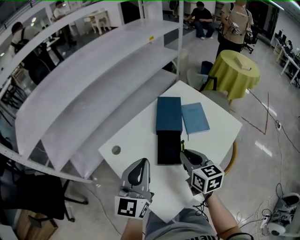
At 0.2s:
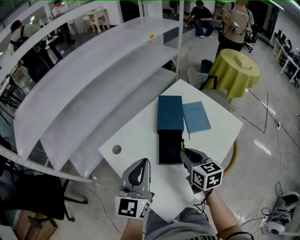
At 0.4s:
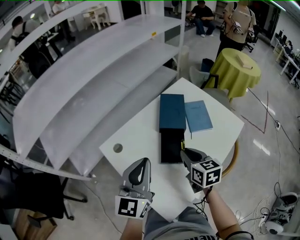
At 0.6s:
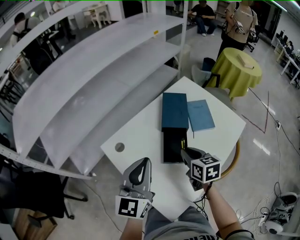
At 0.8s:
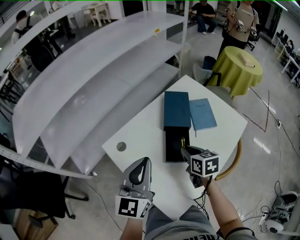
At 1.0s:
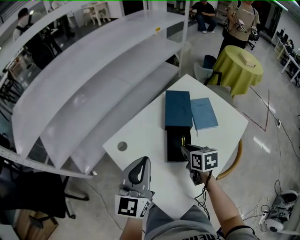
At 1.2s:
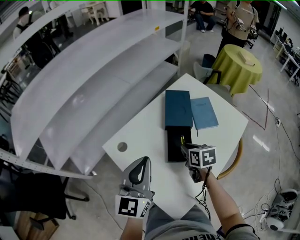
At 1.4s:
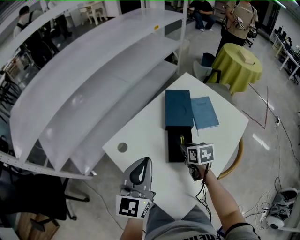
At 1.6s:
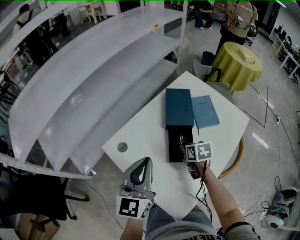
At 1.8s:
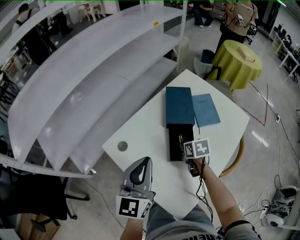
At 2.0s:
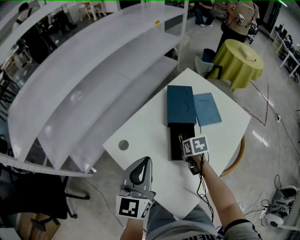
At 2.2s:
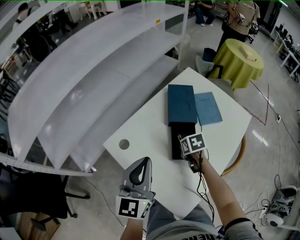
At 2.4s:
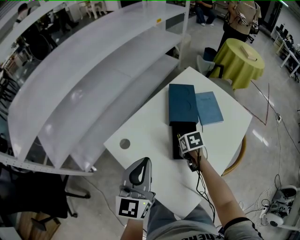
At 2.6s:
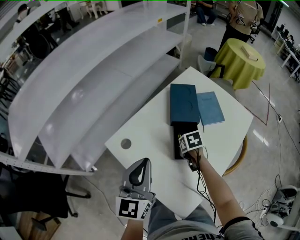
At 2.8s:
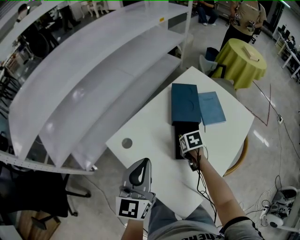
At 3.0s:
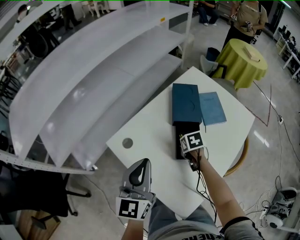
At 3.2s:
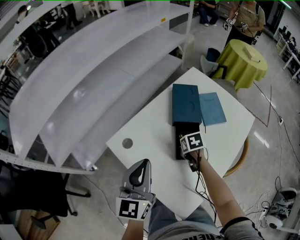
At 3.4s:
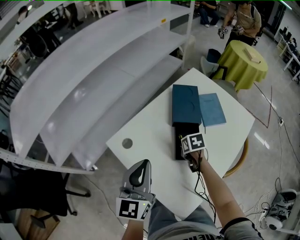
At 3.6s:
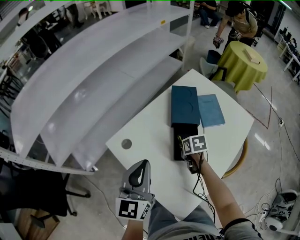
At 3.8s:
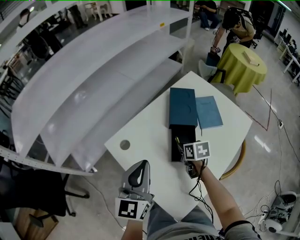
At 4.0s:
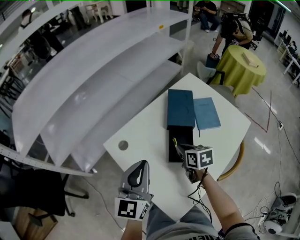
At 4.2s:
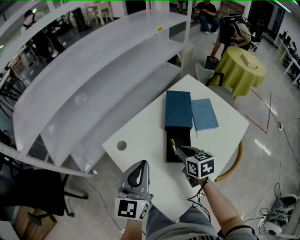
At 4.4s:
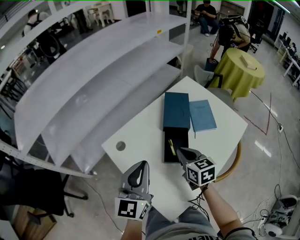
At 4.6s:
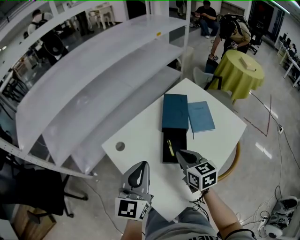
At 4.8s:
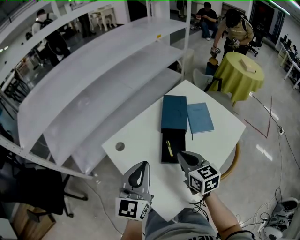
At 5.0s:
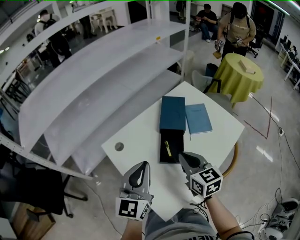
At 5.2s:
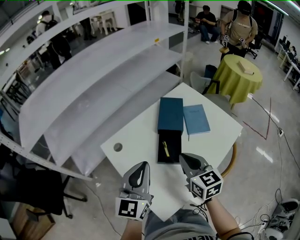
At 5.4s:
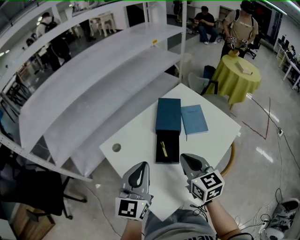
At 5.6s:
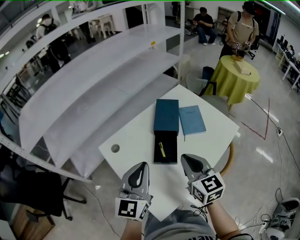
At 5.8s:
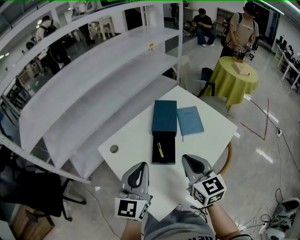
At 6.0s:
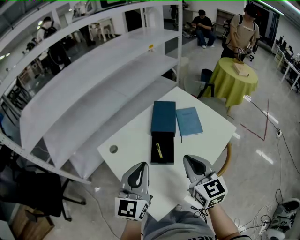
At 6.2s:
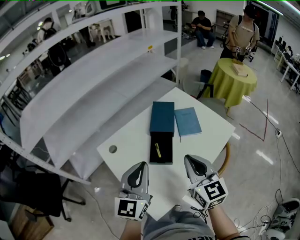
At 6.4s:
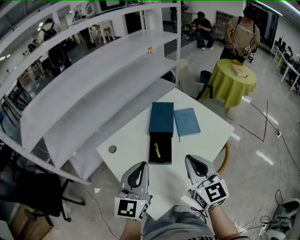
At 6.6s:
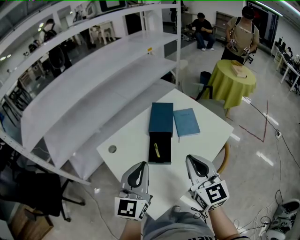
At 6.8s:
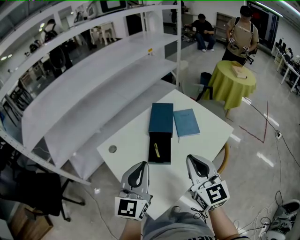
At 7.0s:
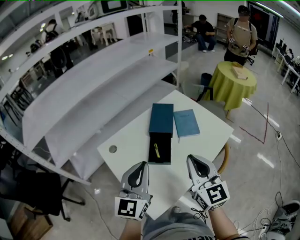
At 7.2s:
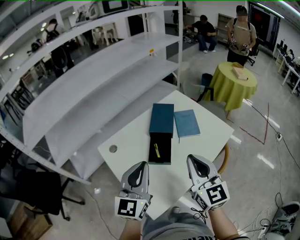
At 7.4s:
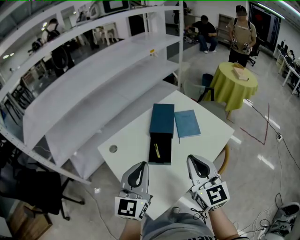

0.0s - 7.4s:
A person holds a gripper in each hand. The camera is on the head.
0.0s - 1.4s: The left gripper moves about 5 cm. The right gripper heads downward and forward, covering approximately 15 cm, and swivels approximately 30 degrees.
1.4s - 3.0s: The right gripper goes approximately 5 cm downward.
3.0s - 4.4s: The right gripper moves upward, roughly 15 cm, and tilts its fingers approximately 40 degrees upward. Meanwhile the left gripper changes place by about 5 cm.
4.4s - 6.0s: The right gripper is displaced upward, backward and to the right by some 15 cm, and turns by some 20 degrees. Meanwhile the left gripper shifts about 5 cm to the right.
6.0s - 7.4s: The right gripper moves some 5 cm.

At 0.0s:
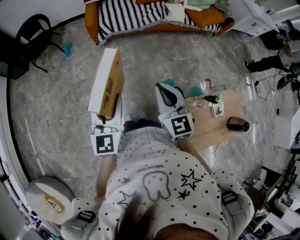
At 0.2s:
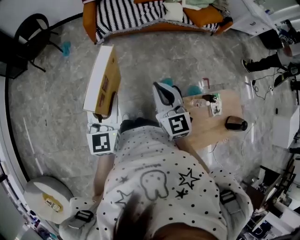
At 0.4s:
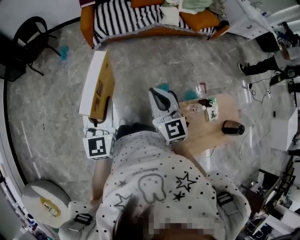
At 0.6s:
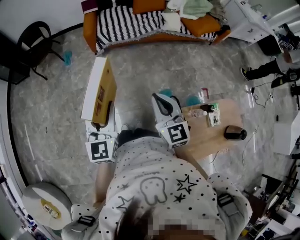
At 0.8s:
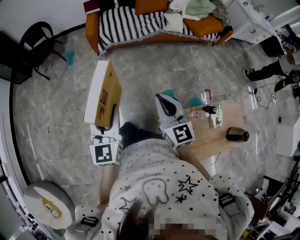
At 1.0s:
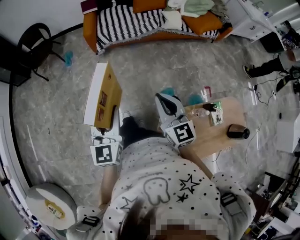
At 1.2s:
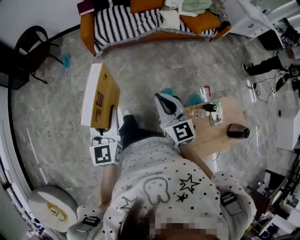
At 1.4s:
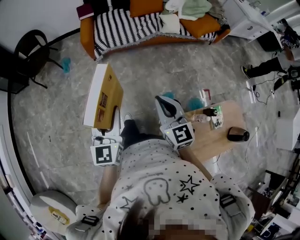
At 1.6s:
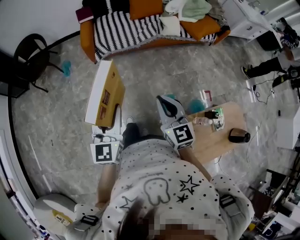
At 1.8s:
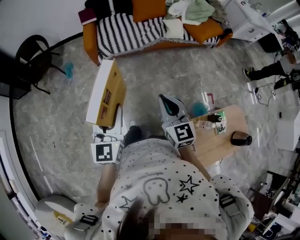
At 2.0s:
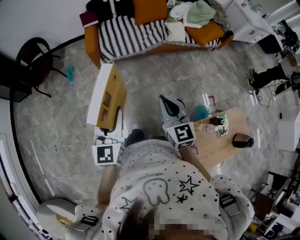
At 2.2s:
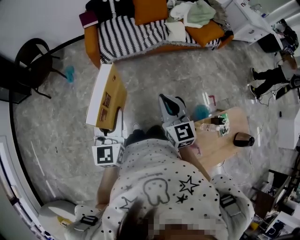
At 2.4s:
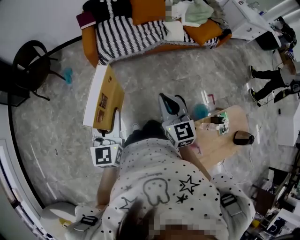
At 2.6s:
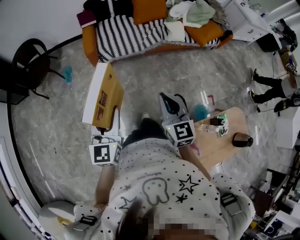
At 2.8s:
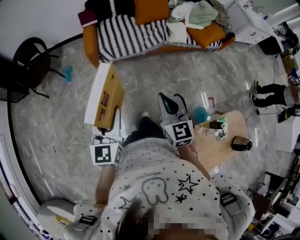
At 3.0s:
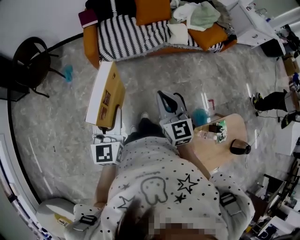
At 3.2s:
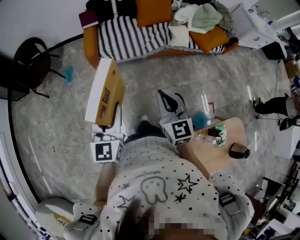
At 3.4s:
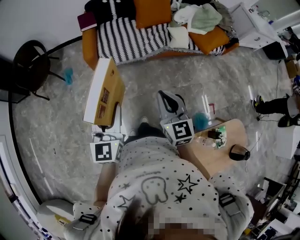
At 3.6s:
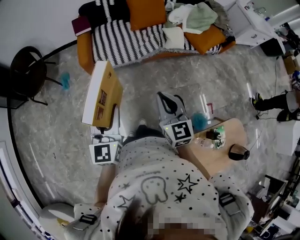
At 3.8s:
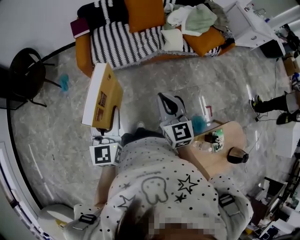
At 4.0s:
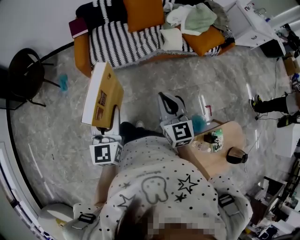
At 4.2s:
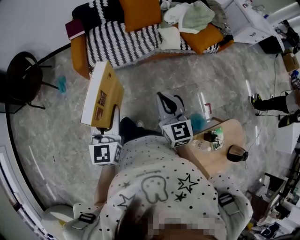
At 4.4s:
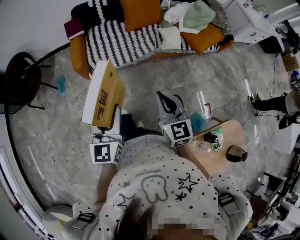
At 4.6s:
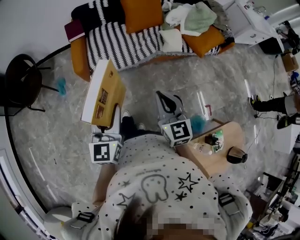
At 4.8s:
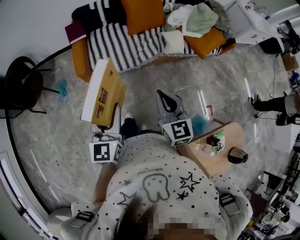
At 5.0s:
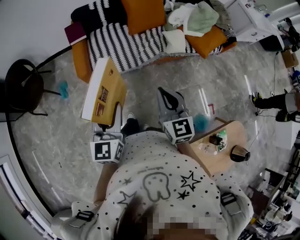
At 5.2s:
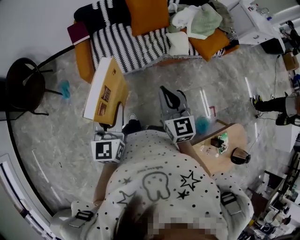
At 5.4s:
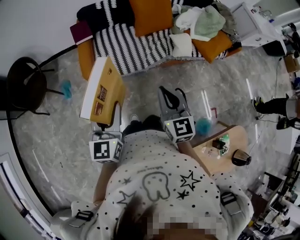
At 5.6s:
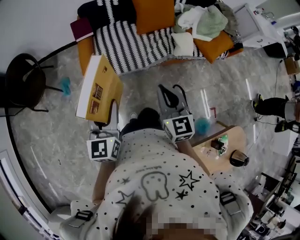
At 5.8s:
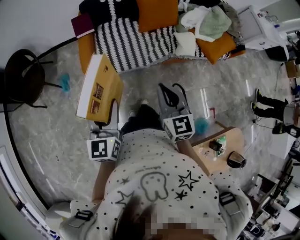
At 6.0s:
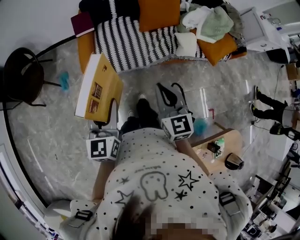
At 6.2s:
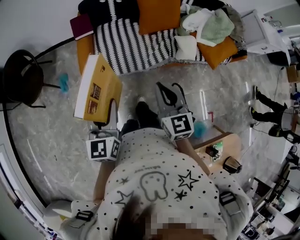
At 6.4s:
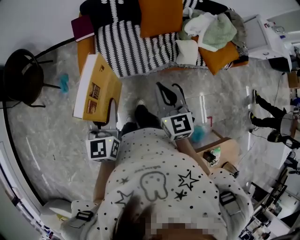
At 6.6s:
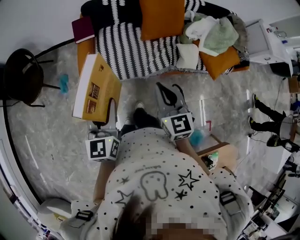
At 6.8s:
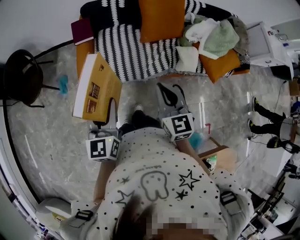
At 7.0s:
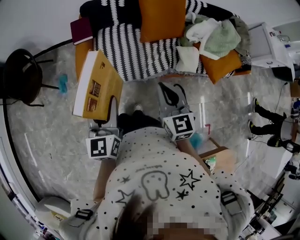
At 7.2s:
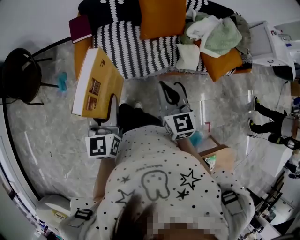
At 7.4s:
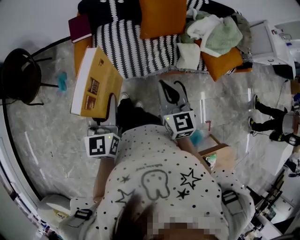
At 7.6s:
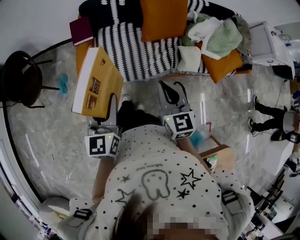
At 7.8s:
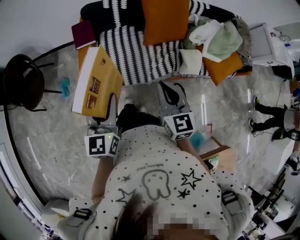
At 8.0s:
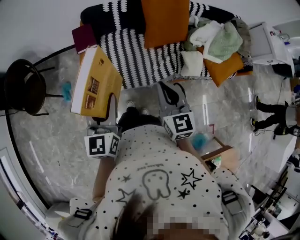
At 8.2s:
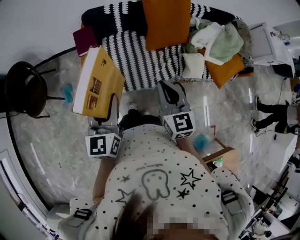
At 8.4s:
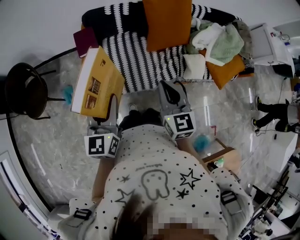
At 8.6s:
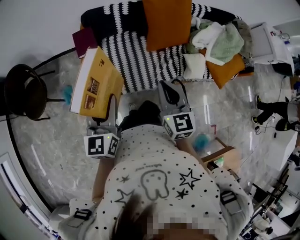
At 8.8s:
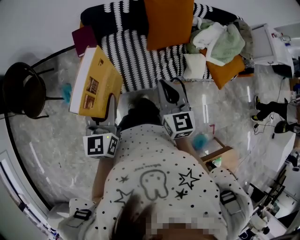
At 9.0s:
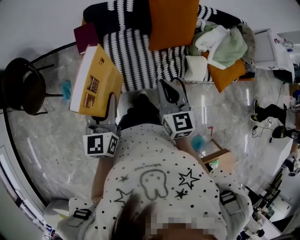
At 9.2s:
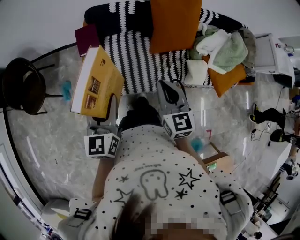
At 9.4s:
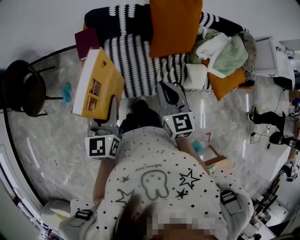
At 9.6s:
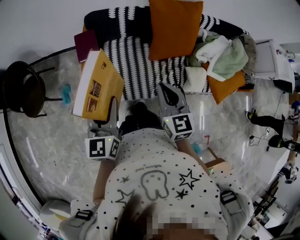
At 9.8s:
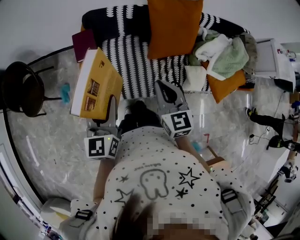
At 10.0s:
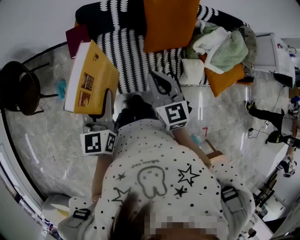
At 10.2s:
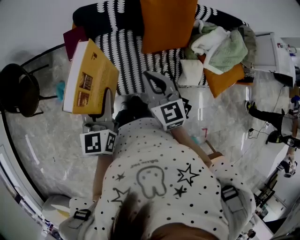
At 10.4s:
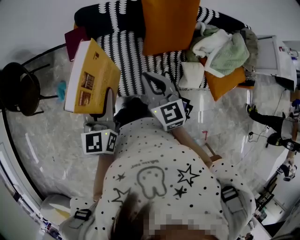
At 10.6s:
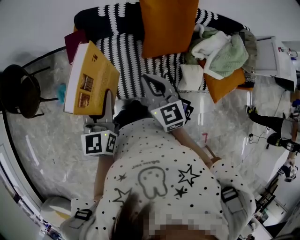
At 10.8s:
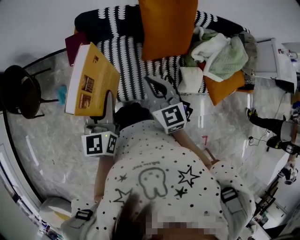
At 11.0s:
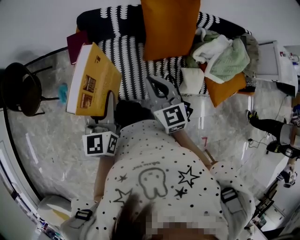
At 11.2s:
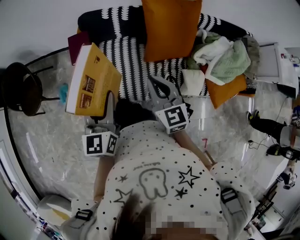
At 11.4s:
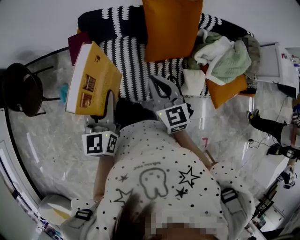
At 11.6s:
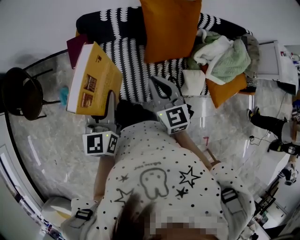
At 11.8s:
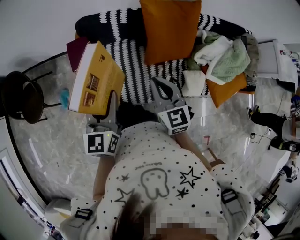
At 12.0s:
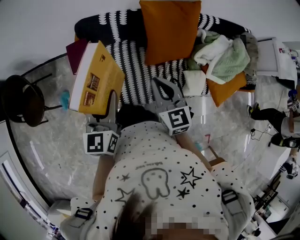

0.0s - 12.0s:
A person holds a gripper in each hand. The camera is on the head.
0.0s - 1.6s: The grippers both shift forward by approximately 10 cm.
1.6s - 3.0s: The two grippers go some 10 cm forward.
3.0s - 4.4s: The grippers both shift forward and to the right by approximately 10 cm.
4.4s - 6.0s: Both grippers move forward and to the left, some 20 cm.
6.0s - 7.6s: Both grippers travel together forward, approximately 15 cm.
7.6s - 9.0s: Both grippers move forward and to the left, approximately 10 cm.
9.0s - 10.4s: The right gripper heads forward, covering roughly 10 cm; the left gripper travels forward and to the right by approximately 10 cm.
10.4s - 12.0s: The grippers both shift forward by approximately 5 cm.

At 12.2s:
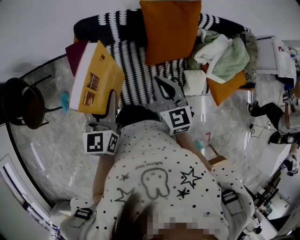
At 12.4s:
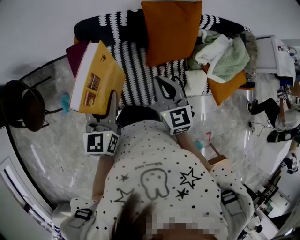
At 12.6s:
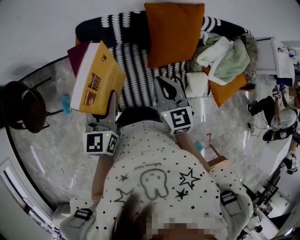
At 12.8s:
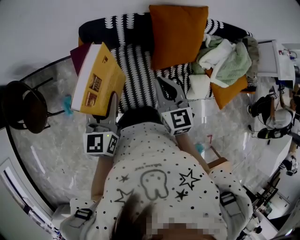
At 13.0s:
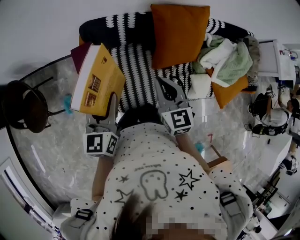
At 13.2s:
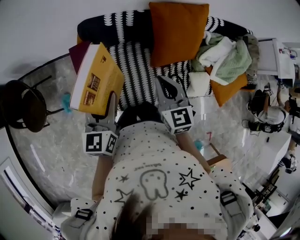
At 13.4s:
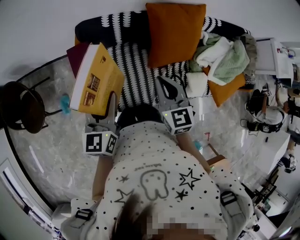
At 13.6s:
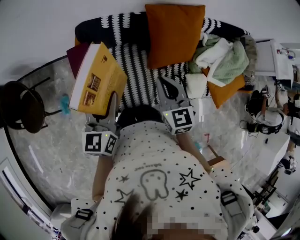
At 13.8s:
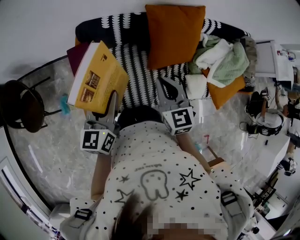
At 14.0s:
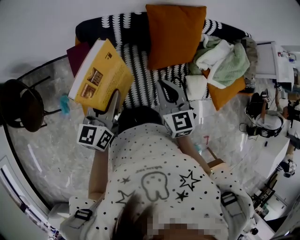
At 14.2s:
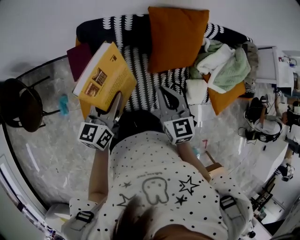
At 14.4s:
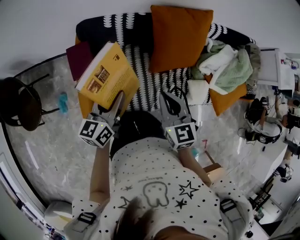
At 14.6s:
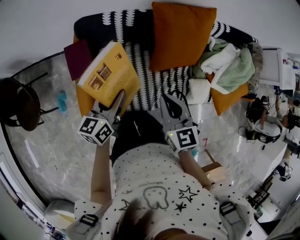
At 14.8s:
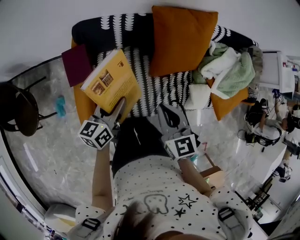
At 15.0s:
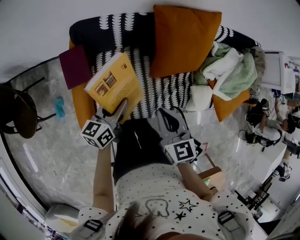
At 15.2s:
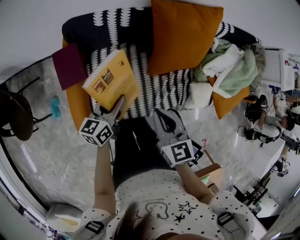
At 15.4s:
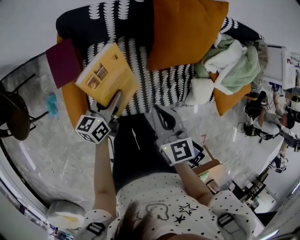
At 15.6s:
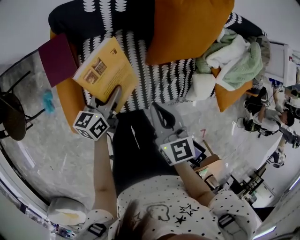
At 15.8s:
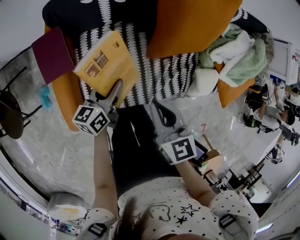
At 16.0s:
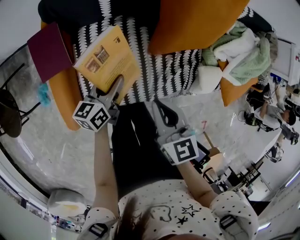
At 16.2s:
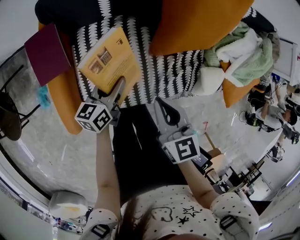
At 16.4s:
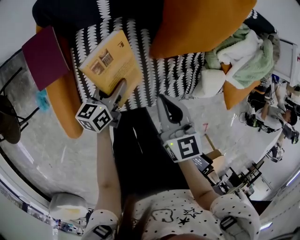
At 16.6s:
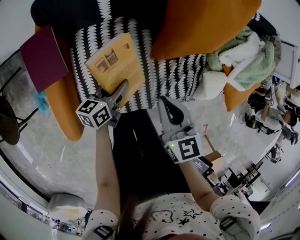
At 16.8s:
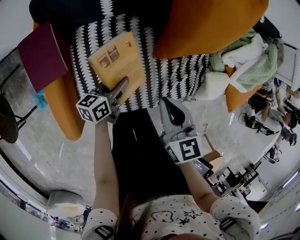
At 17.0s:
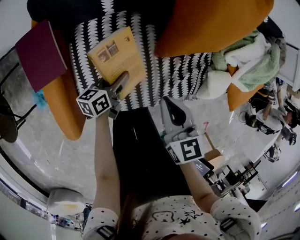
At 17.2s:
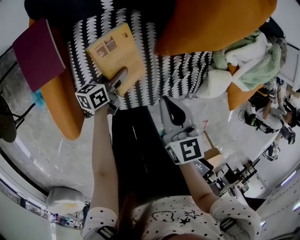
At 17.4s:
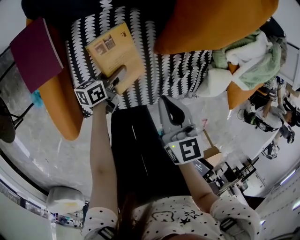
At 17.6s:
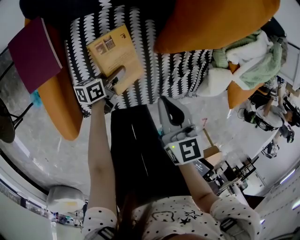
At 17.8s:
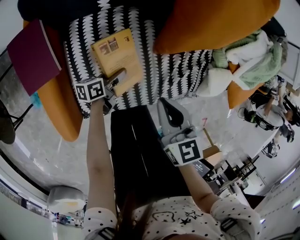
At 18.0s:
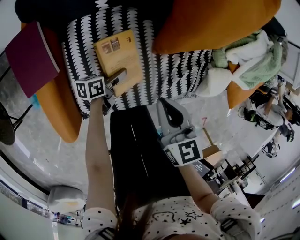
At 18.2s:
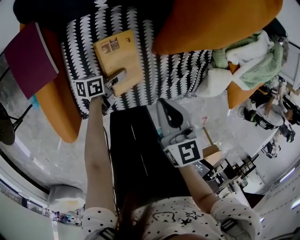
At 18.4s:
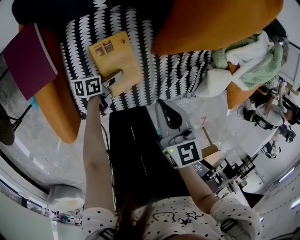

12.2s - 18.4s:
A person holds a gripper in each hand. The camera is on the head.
13.8s - 15.4s: The left gripper goes approximately 25 cm downward, and swivels approximately 30 degrees. Meanwhile the right gripper heads downward, covering about 10 cm.
15.4s - 16.8s: The left gripper shifts some 20 cm downward. Meanwhile the right gripper heads downward, covering about 10 cm.
16.8s - 18.4s: The left gripper is displaced downward by approximately 15 cm, and swivels approximately 30 degrees.
